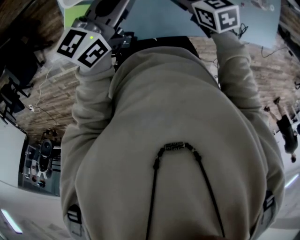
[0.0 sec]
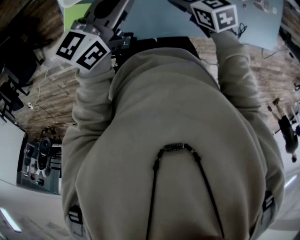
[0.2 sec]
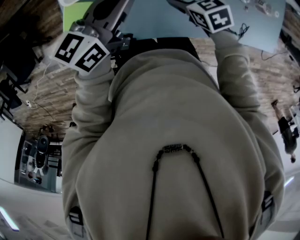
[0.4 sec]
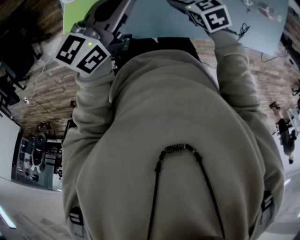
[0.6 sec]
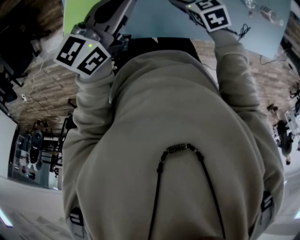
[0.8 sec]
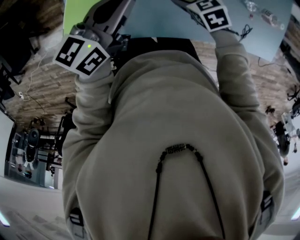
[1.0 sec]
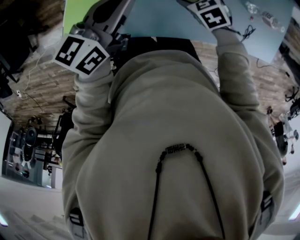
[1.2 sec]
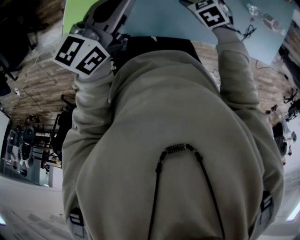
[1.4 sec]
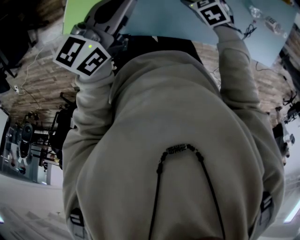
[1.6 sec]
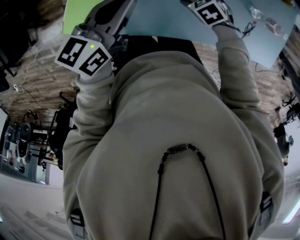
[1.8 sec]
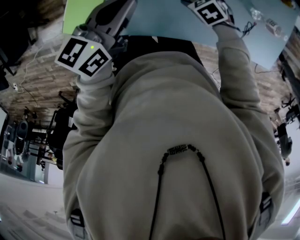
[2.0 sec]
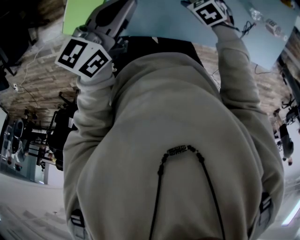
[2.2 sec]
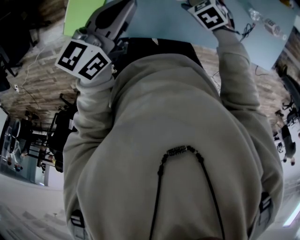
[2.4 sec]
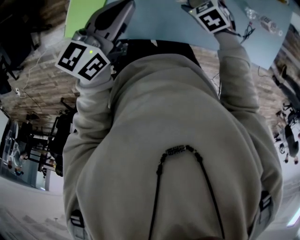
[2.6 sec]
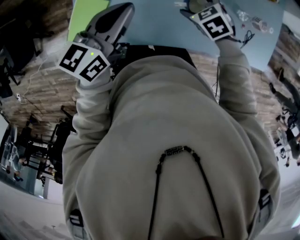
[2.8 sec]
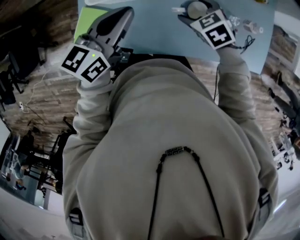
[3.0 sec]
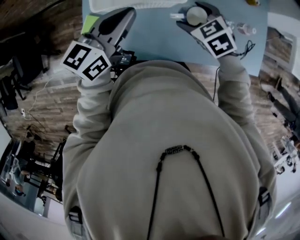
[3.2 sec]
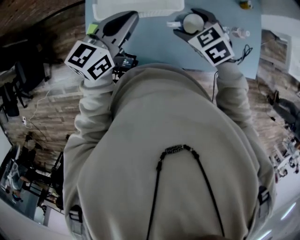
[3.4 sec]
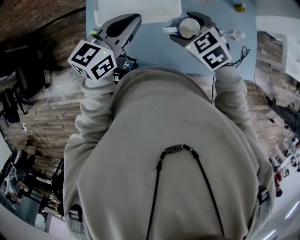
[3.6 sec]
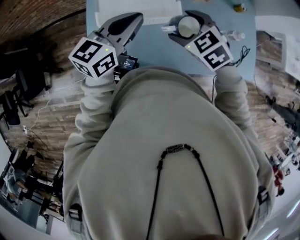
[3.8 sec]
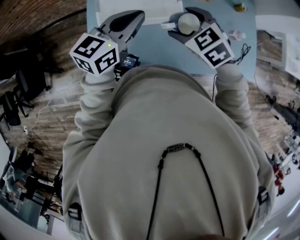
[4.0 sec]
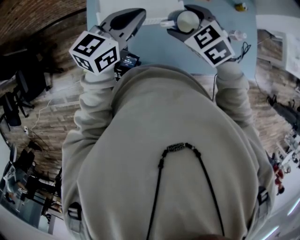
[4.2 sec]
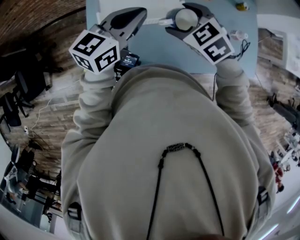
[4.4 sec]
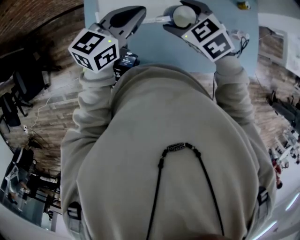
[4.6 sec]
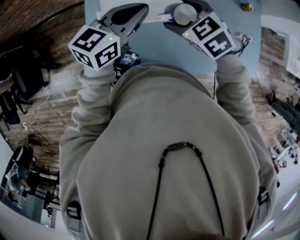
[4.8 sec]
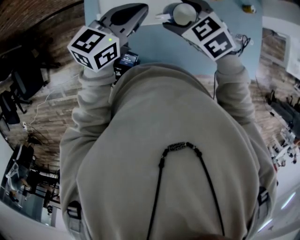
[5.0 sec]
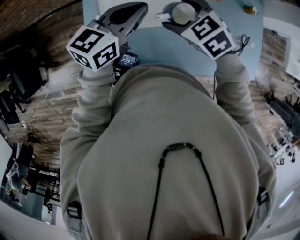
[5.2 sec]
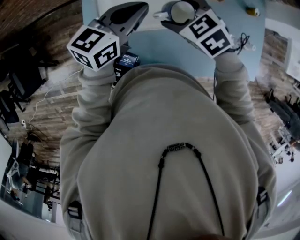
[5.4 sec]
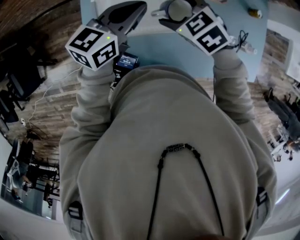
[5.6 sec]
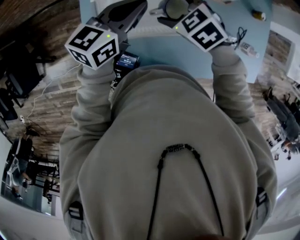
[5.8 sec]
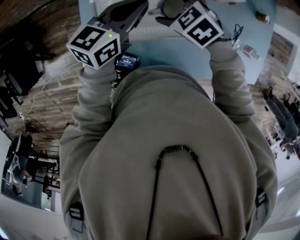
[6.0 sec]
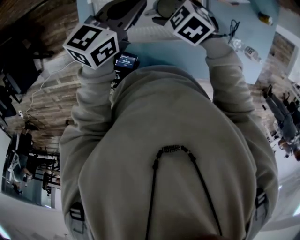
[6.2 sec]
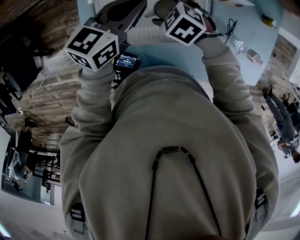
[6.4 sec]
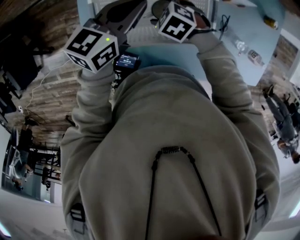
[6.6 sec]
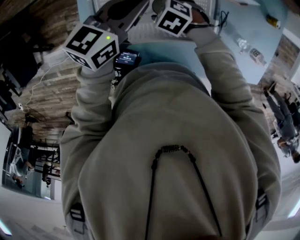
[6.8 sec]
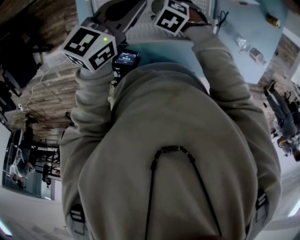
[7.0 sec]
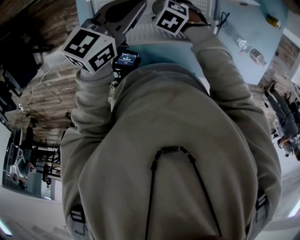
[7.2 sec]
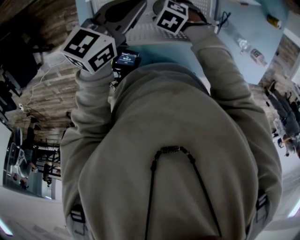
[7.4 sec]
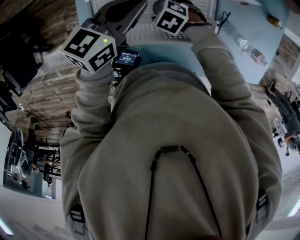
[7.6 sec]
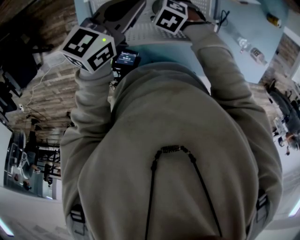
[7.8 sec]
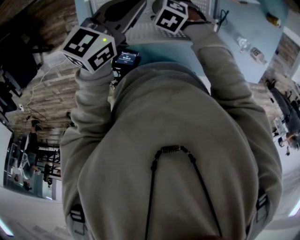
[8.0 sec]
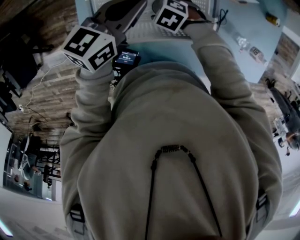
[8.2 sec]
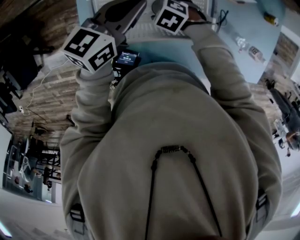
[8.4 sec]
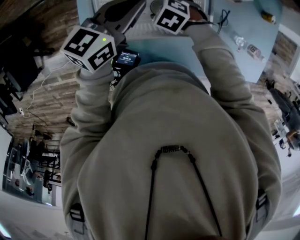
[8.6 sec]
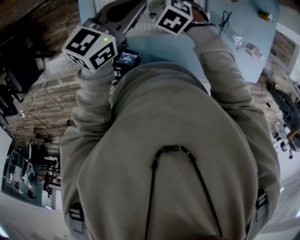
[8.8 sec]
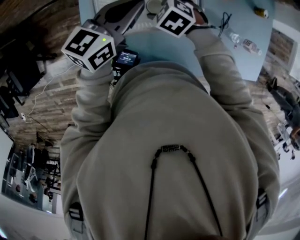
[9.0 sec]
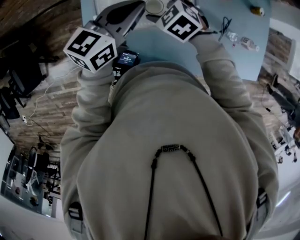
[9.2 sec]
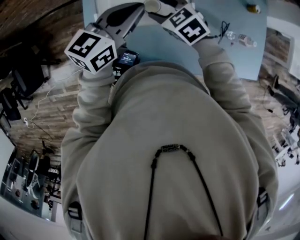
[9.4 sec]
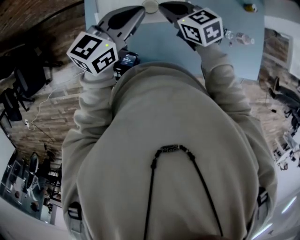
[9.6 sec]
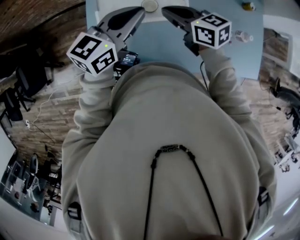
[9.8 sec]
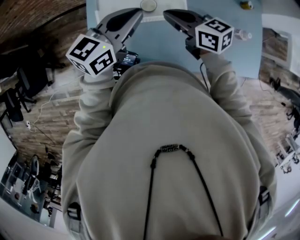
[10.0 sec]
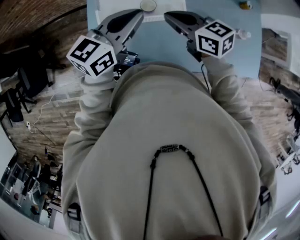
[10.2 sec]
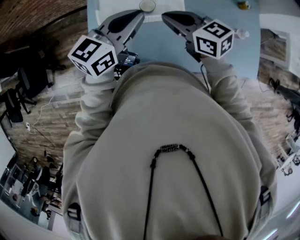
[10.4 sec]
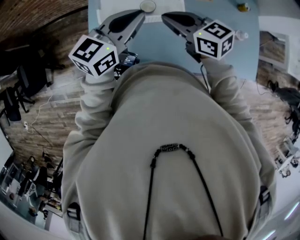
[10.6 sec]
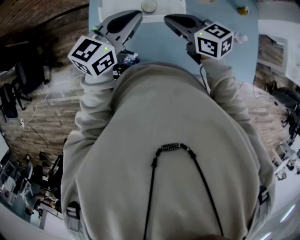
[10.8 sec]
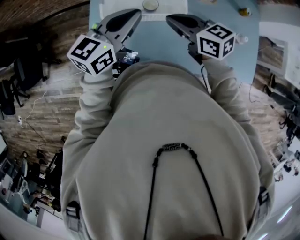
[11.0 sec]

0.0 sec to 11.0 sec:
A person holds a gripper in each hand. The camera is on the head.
0.0 sec to 1.6 sec: The left gripper changes place by approximately 5 cm, while the right gripper moves downward, roughly 15 cm, rotates some 30 degrees, and opens its fingers.
1.6 sec to 3.2 sec: The right gripper heads upward, covering some 20 cm, while the left gripper goes about 10 cm upward.
3.2 sec to 4.8 sec: The right gripper moves to the left, upward and forward, about 15 cm. The left gripper goes approximately 10 cm forward.
4.8 sec to 6.2 sec: The right gripper moves downward and forward, roughly 15 cm; the left gripper shifts approximately 15 cm forward and downward.
6.2 sec to 7.8 sec: The right gripper heads downward, covering some 10 cm.
7.8 sec to 9.4 sec: The left gripper goes about 10 cm upward. Meanwhile the right gripper shifts some 20 cm upward, swivels approximately 30 degrees, and closes its fingers.
9.4 sec to 11.0 sec: The left gripper is displaced backward by approximately 10 cm. The right gripper shifts approximately 15 cm backward and upward, rotates about 30 degrees, and closes.

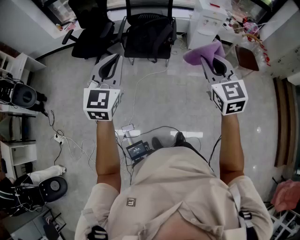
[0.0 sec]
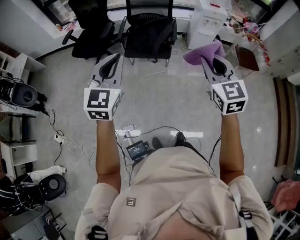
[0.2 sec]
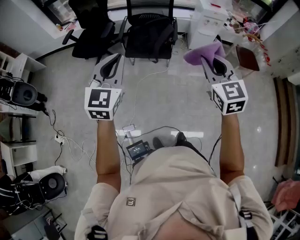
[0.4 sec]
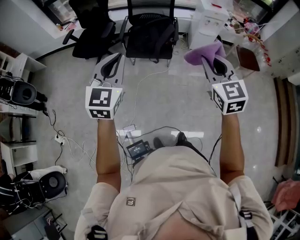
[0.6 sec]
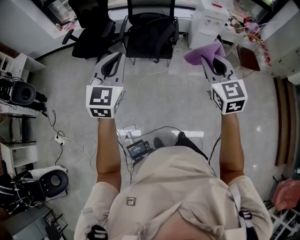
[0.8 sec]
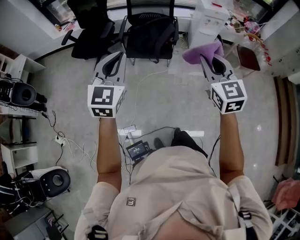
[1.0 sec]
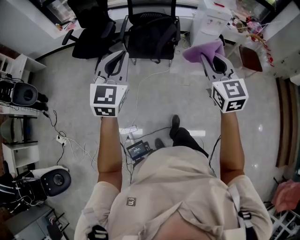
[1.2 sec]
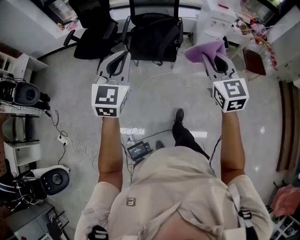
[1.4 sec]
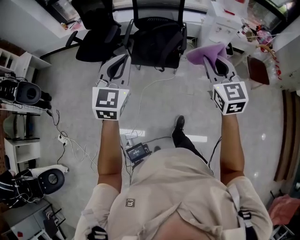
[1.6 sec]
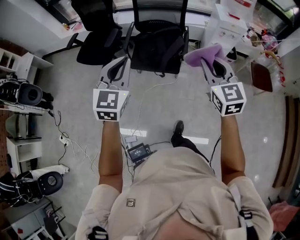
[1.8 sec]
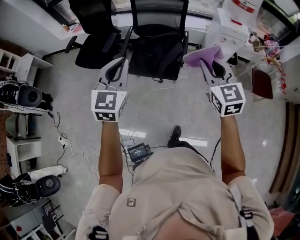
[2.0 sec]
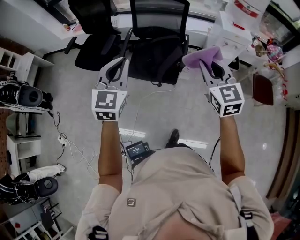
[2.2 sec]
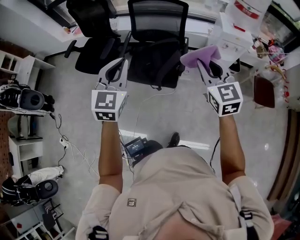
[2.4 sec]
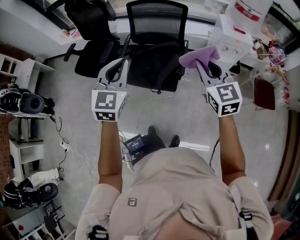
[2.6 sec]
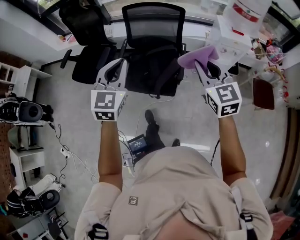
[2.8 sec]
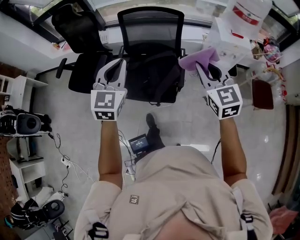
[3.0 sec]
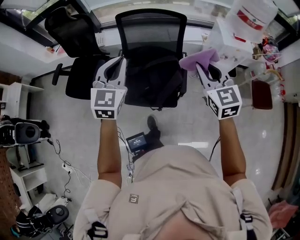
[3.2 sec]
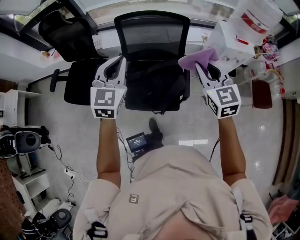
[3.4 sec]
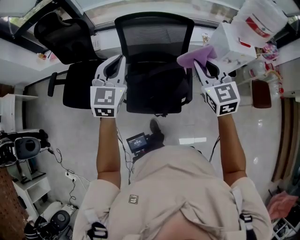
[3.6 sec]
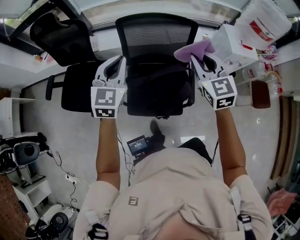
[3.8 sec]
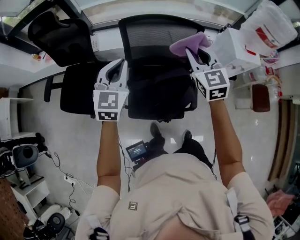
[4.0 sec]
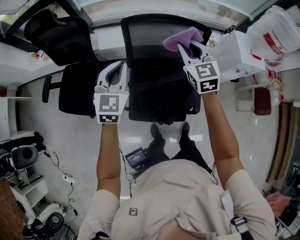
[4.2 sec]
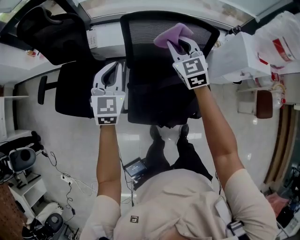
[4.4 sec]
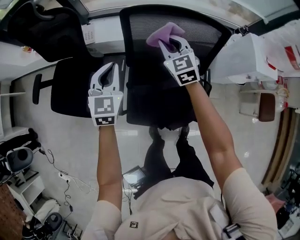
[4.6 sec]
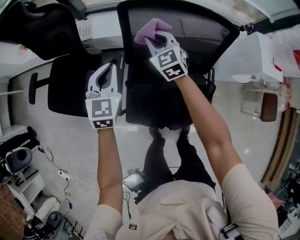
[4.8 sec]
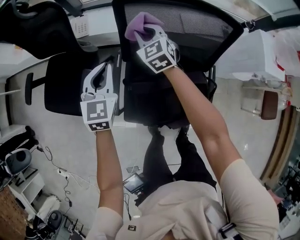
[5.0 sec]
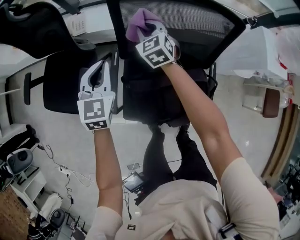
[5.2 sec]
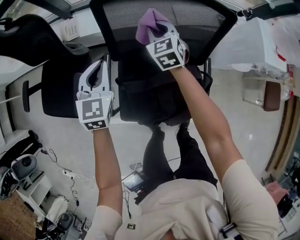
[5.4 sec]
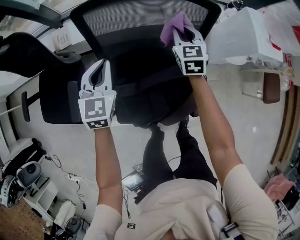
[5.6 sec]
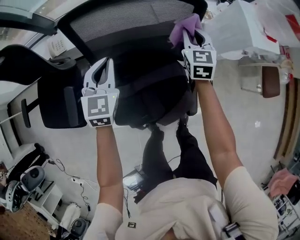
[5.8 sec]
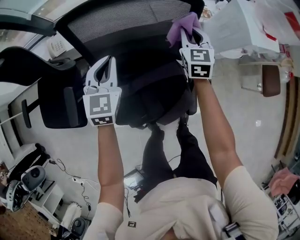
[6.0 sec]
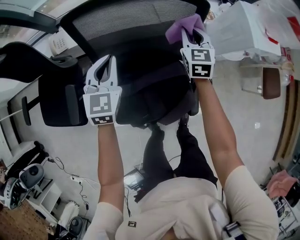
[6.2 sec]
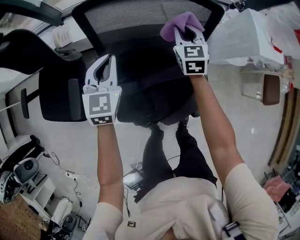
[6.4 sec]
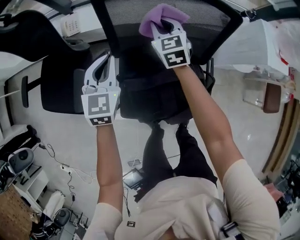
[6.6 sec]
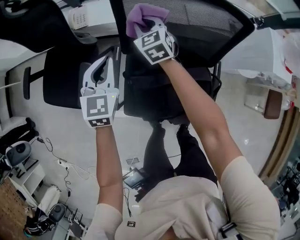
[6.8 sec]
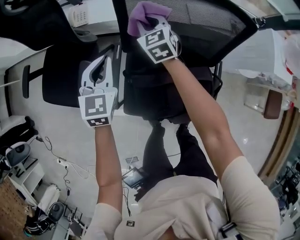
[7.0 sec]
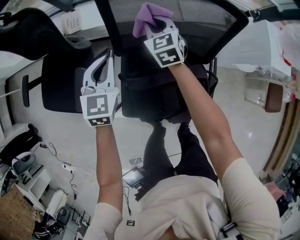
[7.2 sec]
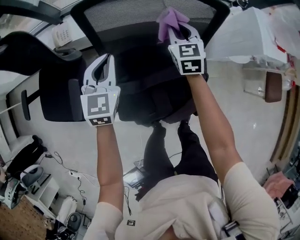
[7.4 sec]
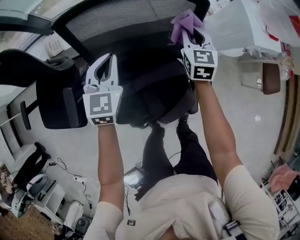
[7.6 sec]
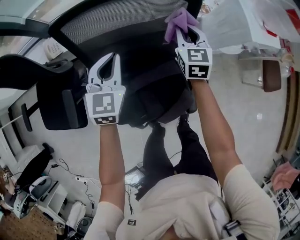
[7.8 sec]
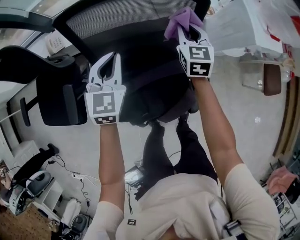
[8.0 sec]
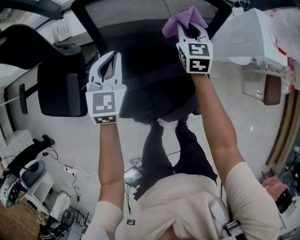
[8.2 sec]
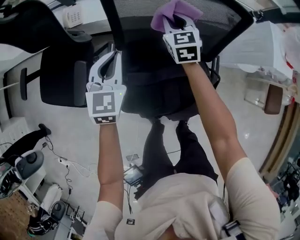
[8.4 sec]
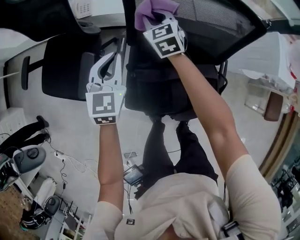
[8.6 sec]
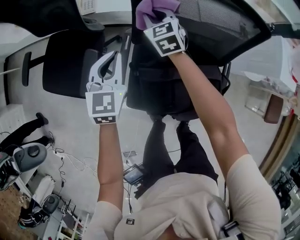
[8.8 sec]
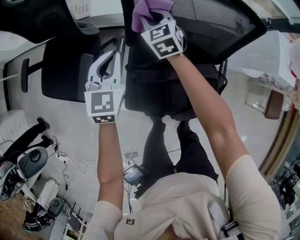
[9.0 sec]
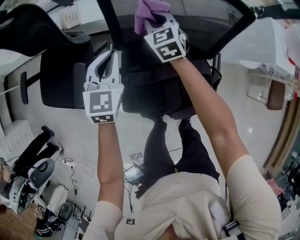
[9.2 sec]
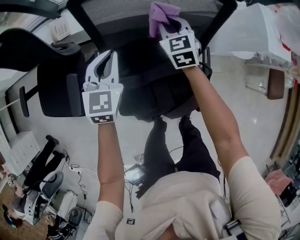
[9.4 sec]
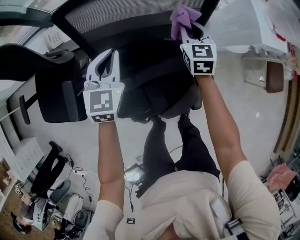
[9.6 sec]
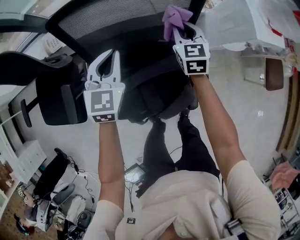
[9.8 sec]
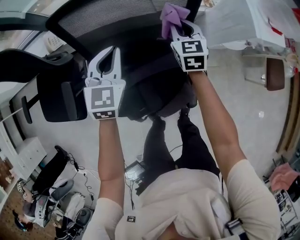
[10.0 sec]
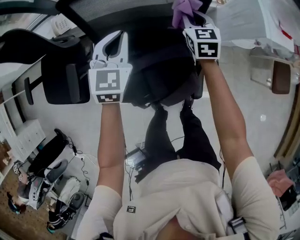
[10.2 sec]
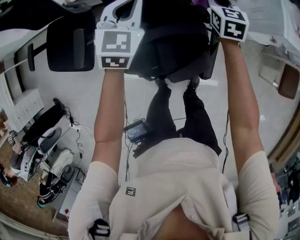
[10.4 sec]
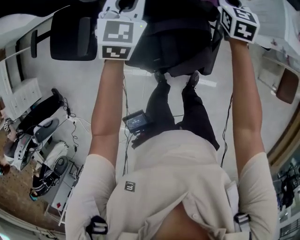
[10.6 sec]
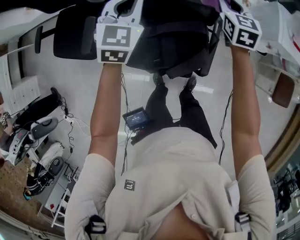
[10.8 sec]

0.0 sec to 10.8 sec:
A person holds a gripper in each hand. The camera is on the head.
0.0 sec to 1.6 sec: The two grippers go roughly 15 cm forward.
1.6 sec to 3.0 sec: Both grippers move forward, approximately 35 cm.
3.0 sec to 4.6 sec: Both grippers are carried forward and to the left, roughly 50 cm. The grippers both shift downward by roughly 25 cm.
4.6 sec to 6.2 sec: The left gripper heads to the right, downward and forward, covering approximately 20 cm. The right gripper is displaced to the right by about 25 cm, and changes its angle by approximately 30 degrees.
6.2 sec to 7.8 sec: The left gripper moves roughly 15 cm to the left and comes back. Meanwhile the right gripper travels to the left and back again, some 35 cm each way.
7.8 sec to 9.2 sec: The left gripper moves to the left, roughly 15 cm. The right gripper travels to the left by roughly 30 cm, and swivels approximately 30 degrees.
9.2 sec to 10.8 sec: The left gripper travels to the right and upward by some 20 cm. The right gripper heads to the right and upward, covering approximately 30 cm.

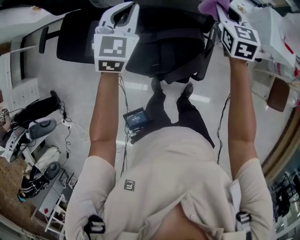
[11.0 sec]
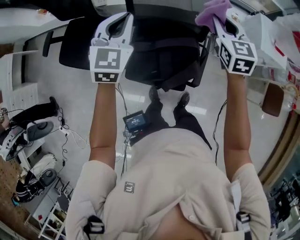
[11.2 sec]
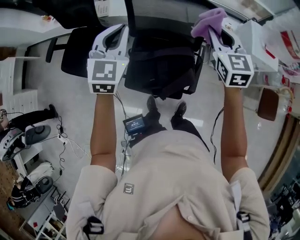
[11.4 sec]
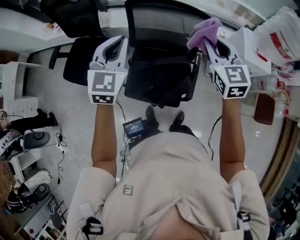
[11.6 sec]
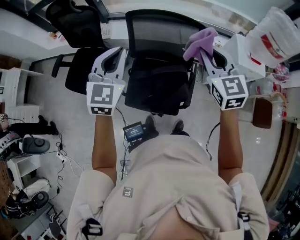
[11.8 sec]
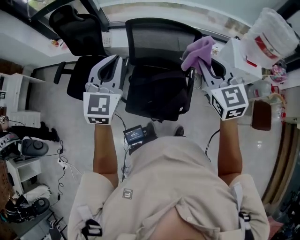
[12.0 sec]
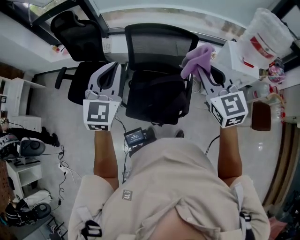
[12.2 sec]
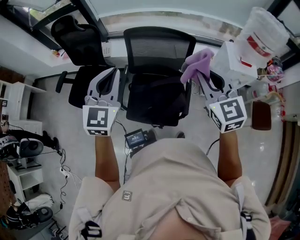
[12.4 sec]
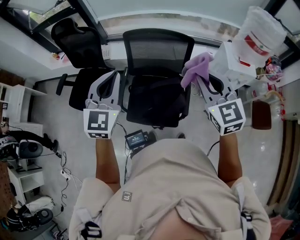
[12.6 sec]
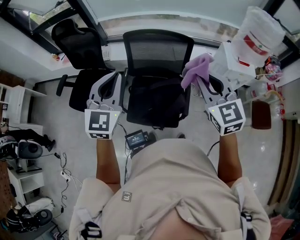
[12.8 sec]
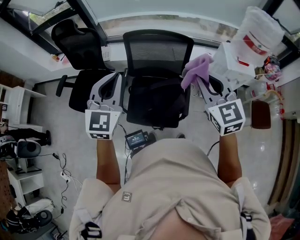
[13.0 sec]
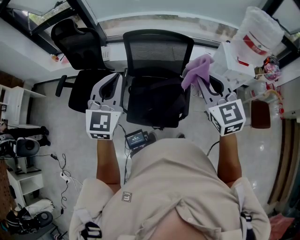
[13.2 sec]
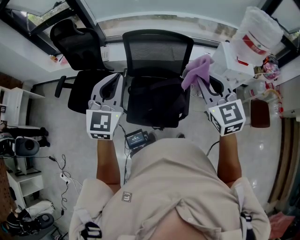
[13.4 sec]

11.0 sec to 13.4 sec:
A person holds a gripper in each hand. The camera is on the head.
11.0 sec to 12.2 sec: Both grippers move upward and backward, about 30 cm. The right gripper turns by approximately 20 degrees.
12.2 sec to 13.4 sec: The right gripper shifts by some 5 cm.
